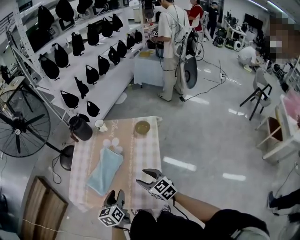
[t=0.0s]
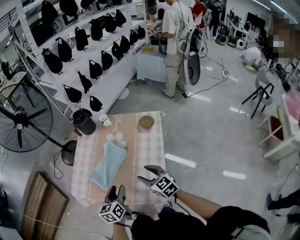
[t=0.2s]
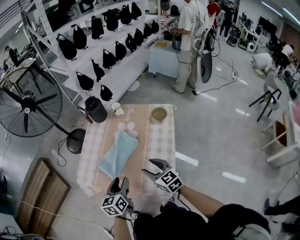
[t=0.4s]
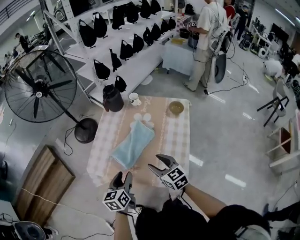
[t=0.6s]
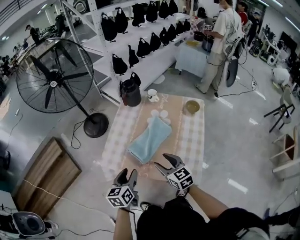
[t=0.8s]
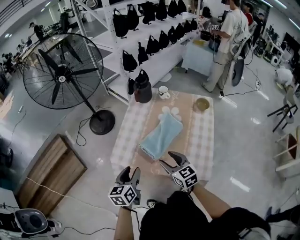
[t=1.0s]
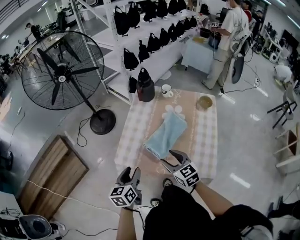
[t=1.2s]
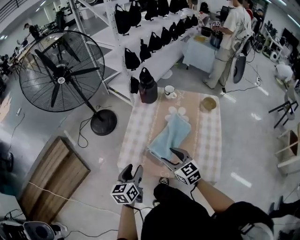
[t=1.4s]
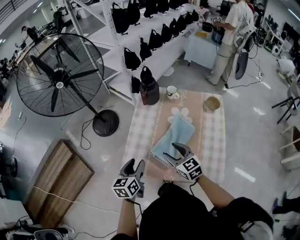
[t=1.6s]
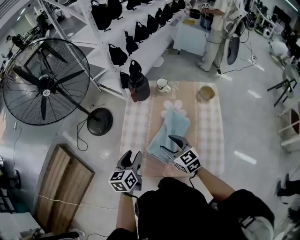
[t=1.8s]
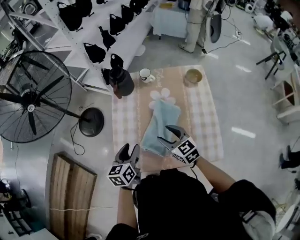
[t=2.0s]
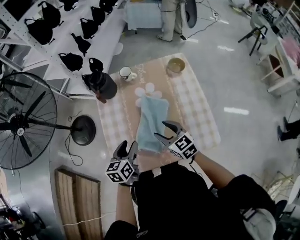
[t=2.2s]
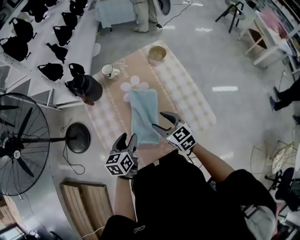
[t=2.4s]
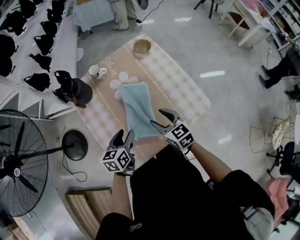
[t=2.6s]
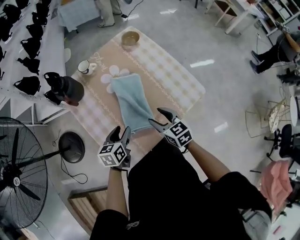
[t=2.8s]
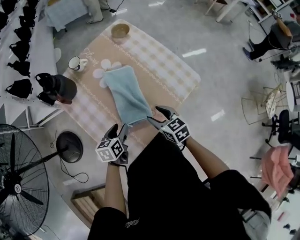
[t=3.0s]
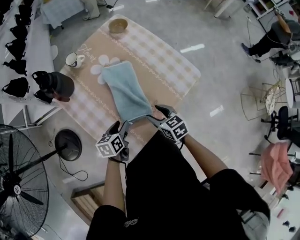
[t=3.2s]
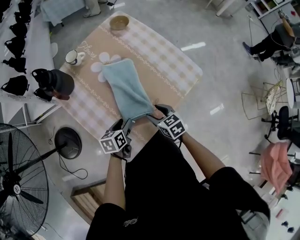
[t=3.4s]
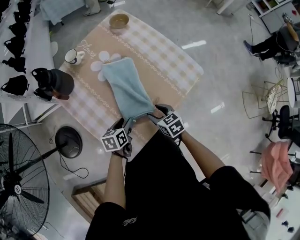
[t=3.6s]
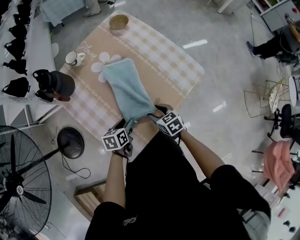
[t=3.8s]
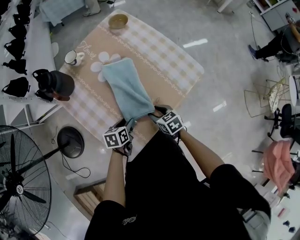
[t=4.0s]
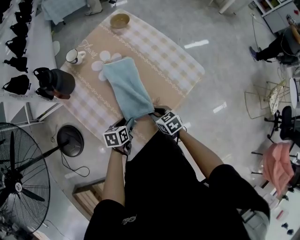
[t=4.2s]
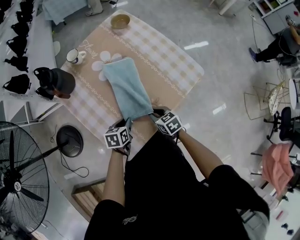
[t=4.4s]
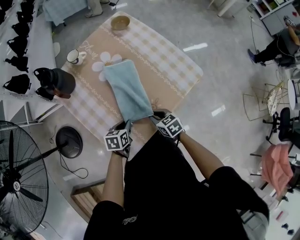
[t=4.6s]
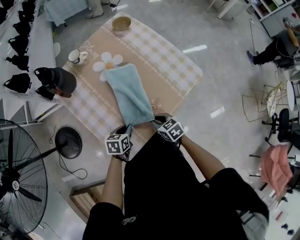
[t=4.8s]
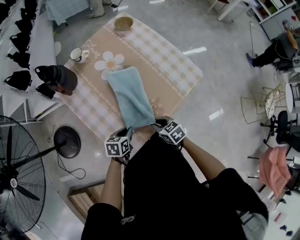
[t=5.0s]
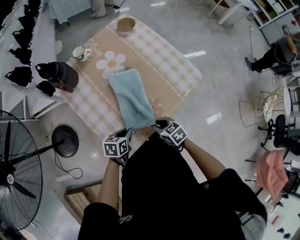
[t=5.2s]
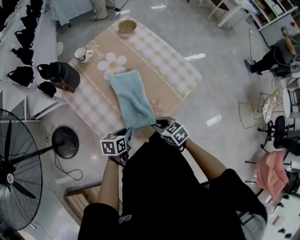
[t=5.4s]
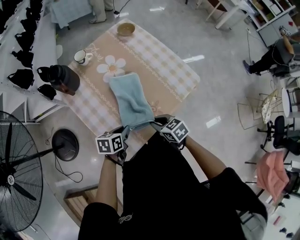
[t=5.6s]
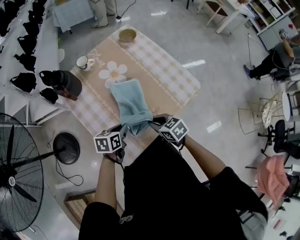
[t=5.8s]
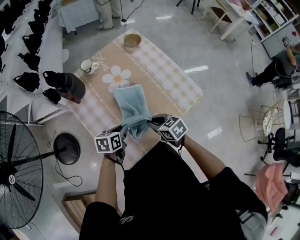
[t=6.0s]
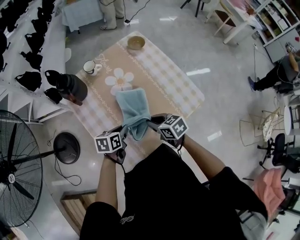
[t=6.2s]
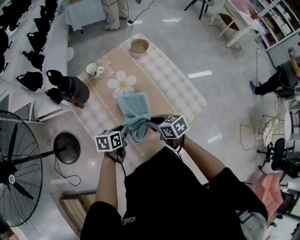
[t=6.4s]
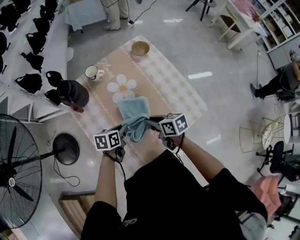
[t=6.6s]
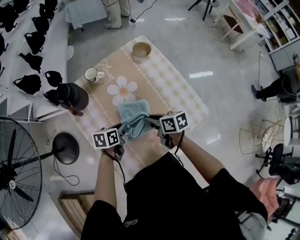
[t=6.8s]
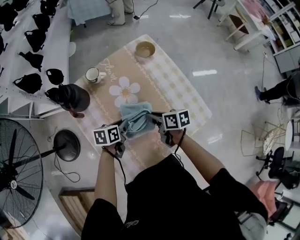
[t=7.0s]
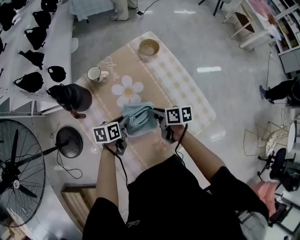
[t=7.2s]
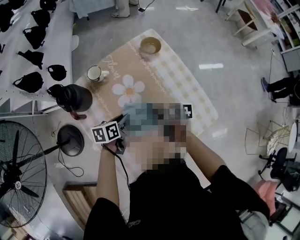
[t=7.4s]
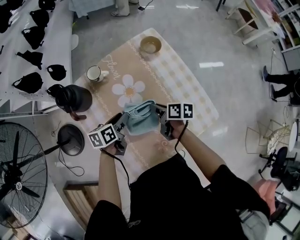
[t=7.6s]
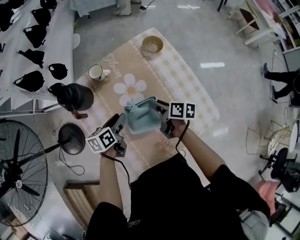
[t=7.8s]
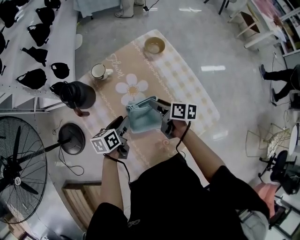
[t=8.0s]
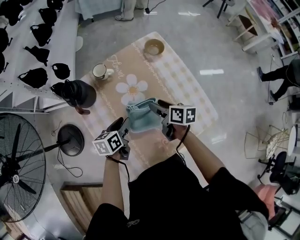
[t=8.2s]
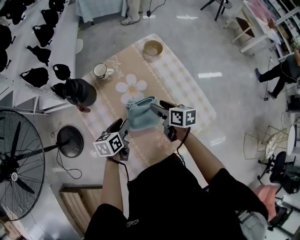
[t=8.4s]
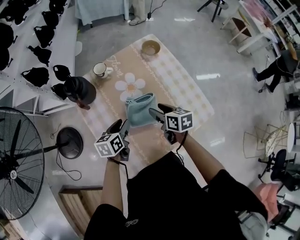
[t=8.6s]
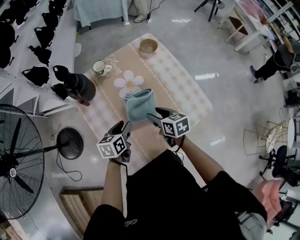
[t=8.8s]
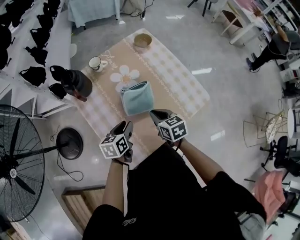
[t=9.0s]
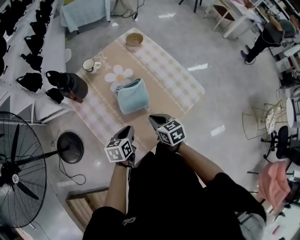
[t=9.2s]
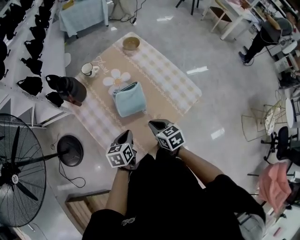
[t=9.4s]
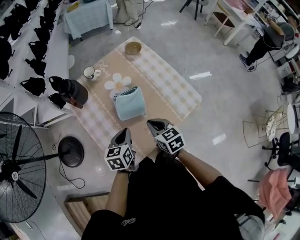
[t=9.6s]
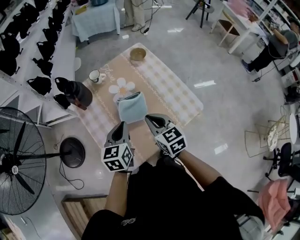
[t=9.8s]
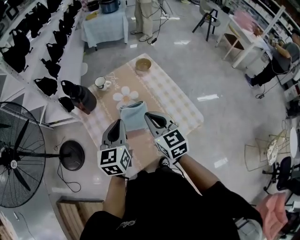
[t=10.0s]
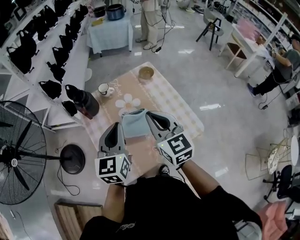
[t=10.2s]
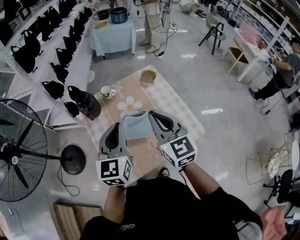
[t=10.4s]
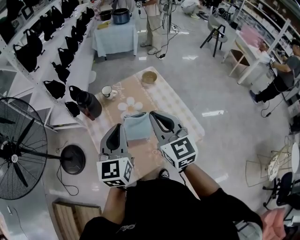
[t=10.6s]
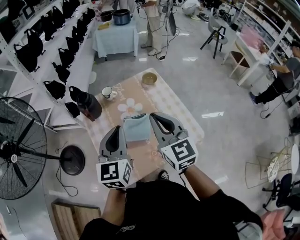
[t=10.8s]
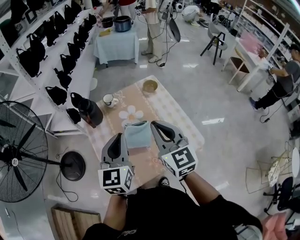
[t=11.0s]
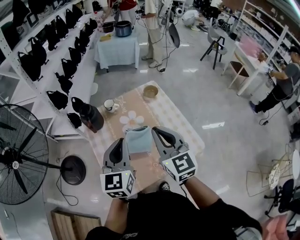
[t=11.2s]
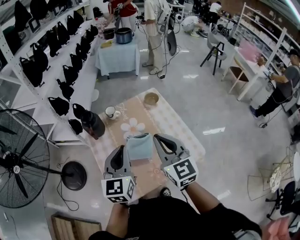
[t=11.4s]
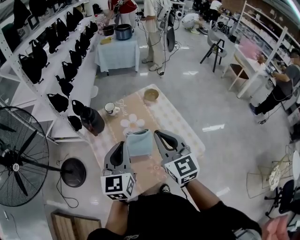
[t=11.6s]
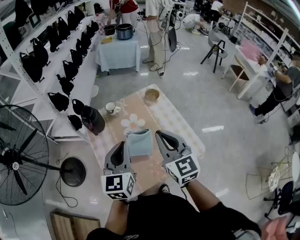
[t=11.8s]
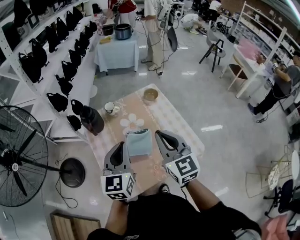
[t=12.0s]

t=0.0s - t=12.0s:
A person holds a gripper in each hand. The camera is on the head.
t=0.0s - t=1.6s: The grippers both shift to the left by about 30 cm.
t=1.6s - t=3.0s: Both grippers travel together downward, some 15 cm. The left gripper rotates roughly 60 degrees. The right gripper rotates roughly 60 degrees.
t=3.0s - t=4.4s: Both grippers move downward, roughly 10 cm. The left gripper closes; the right gripper closes its fingers.
t=4.4s - t=6.0s: Both grippers move upward, some 10 cm. The left gripper moves approximately 5 cm backward and comes back.
t=6.0s - t=7.6s: The two grippers go approximately 20 cm forward. The right gripper rolls clockwise, seen from behind, by some 40 degrees; the left gripper swivels approximately 20 degrees.
t=7.6s - t=9.0s: The grippers both shift backward by roughly 15 cm. The right gripper swivels approximately 40 degrees, and opens, then closes once more.
t=9.0s - t=10.4s: The two grippers go roughly 30 cm upward. The right gripper tilts its fingers some 30 degrees upward. The left gripper rotates about 50 degrees, and closes up.
t=10.4s - t=12.0s: The grippers stay close to where they were, moving slightly.

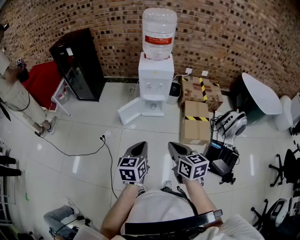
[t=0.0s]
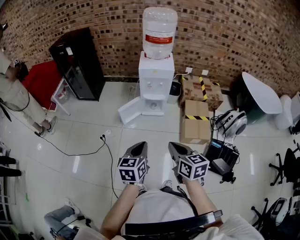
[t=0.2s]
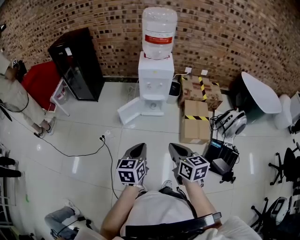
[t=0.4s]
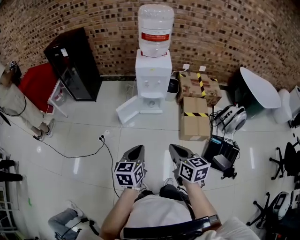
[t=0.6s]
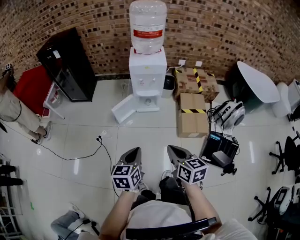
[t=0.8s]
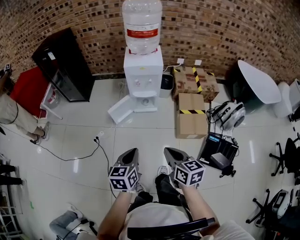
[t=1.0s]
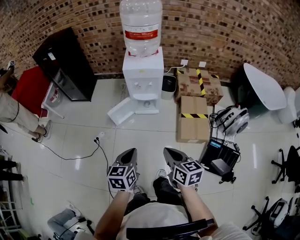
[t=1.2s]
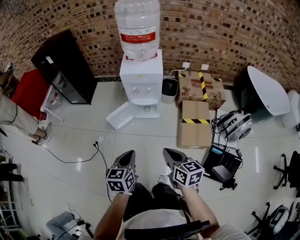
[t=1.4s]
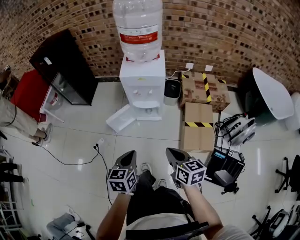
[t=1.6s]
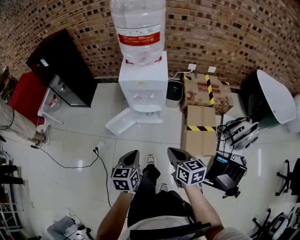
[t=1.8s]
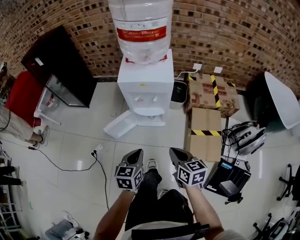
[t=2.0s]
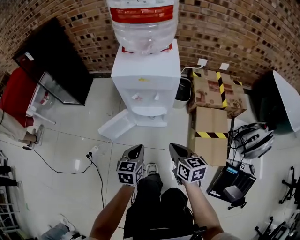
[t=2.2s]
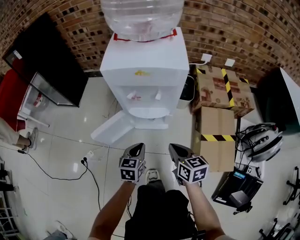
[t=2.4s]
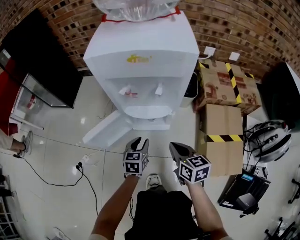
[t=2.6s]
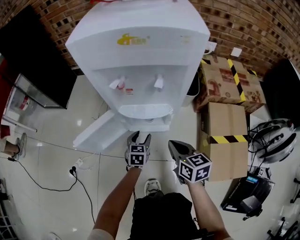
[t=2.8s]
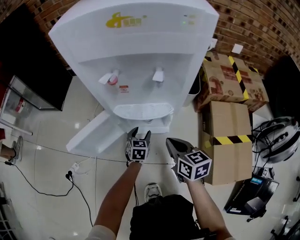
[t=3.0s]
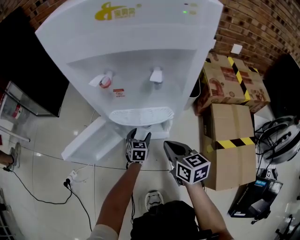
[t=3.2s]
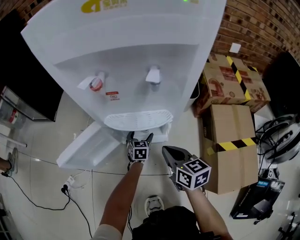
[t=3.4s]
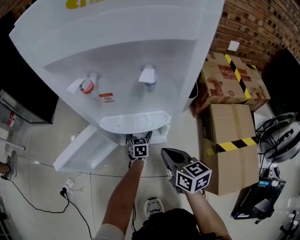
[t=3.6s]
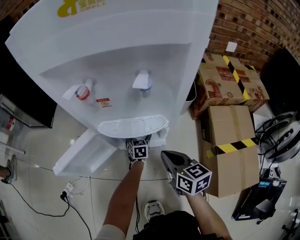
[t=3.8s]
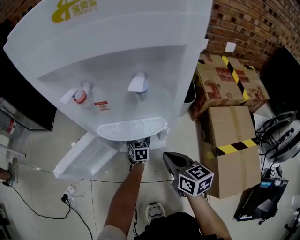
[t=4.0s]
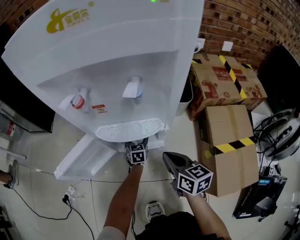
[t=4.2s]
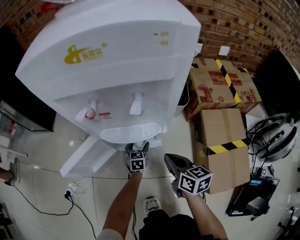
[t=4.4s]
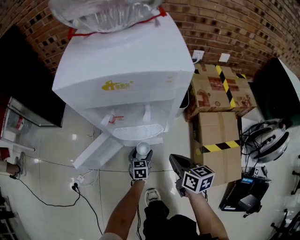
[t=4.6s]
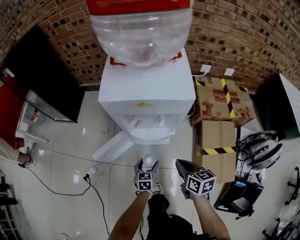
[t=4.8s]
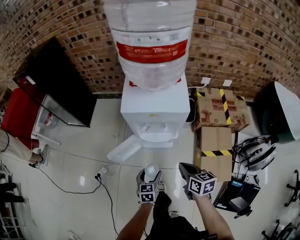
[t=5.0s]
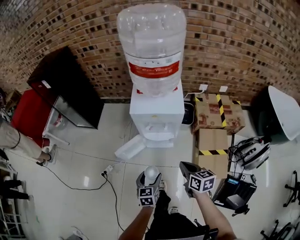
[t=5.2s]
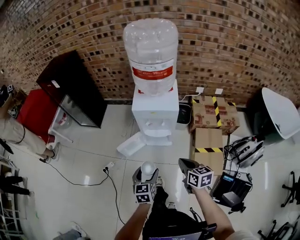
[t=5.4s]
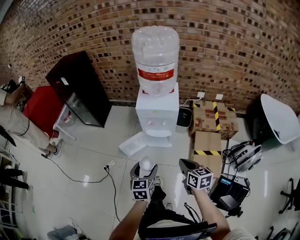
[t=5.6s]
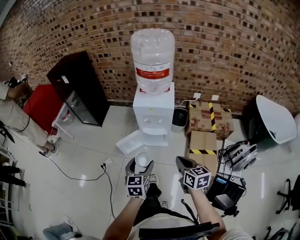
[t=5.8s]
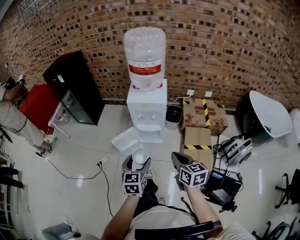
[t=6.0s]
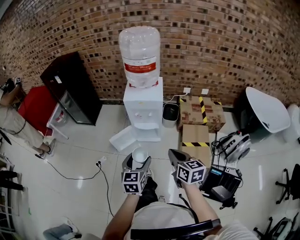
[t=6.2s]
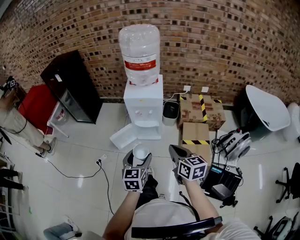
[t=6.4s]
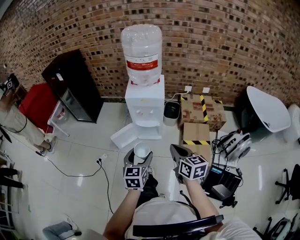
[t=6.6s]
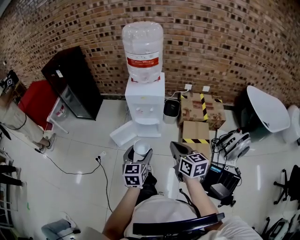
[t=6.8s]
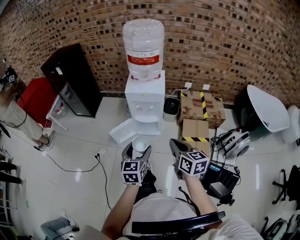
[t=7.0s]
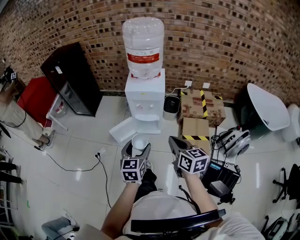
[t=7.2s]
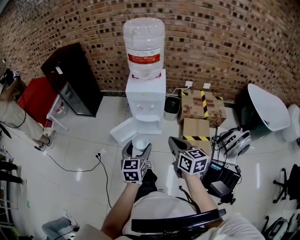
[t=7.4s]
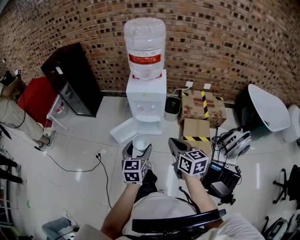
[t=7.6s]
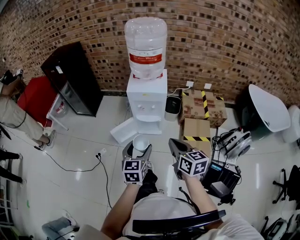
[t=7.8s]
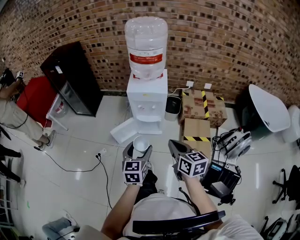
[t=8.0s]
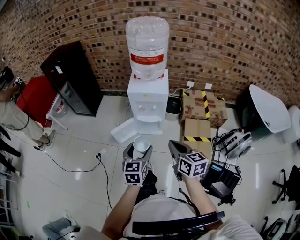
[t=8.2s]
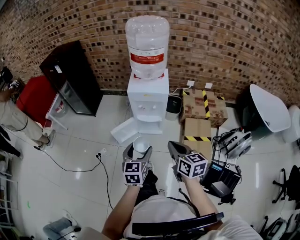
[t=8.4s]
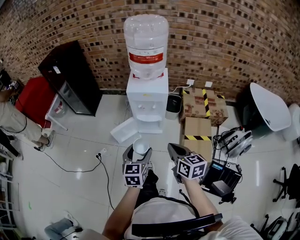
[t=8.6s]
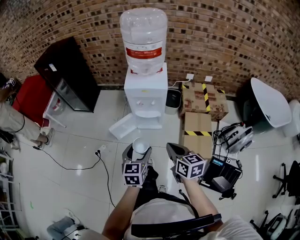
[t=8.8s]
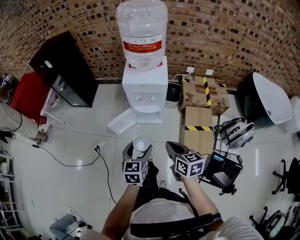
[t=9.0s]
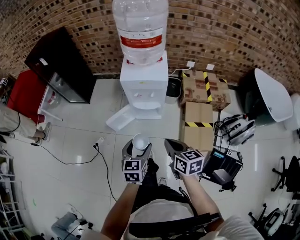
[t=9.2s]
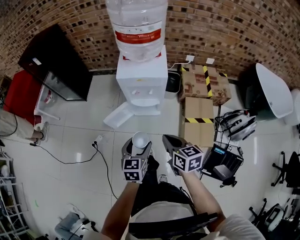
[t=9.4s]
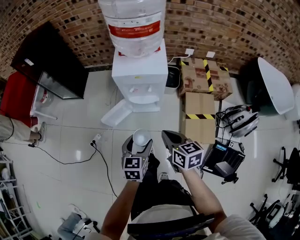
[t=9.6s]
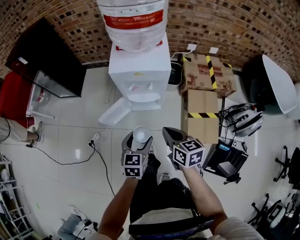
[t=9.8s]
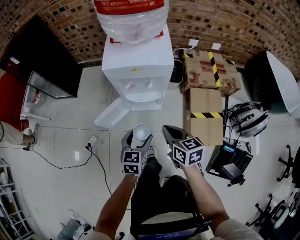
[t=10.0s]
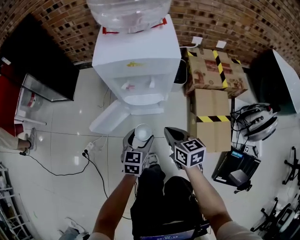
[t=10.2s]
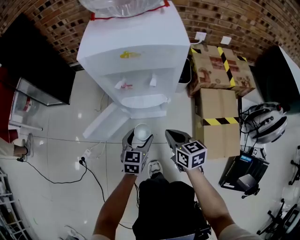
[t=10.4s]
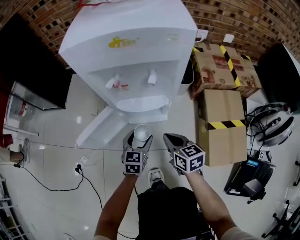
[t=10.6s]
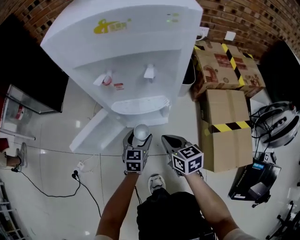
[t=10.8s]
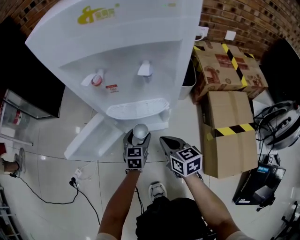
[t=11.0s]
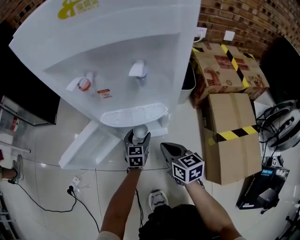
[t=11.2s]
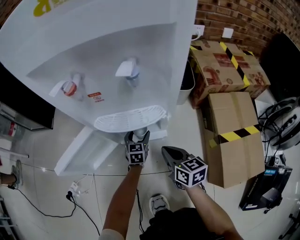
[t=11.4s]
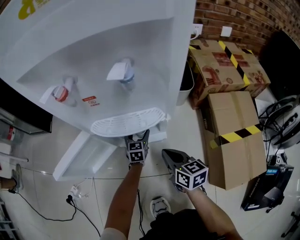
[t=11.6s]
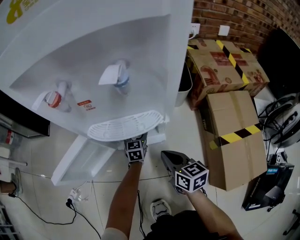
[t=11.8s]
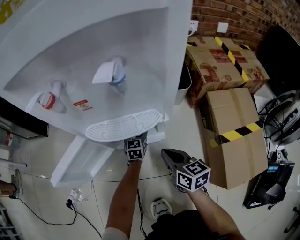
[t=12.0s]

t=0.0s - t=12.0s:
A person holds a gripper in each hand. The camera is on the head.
t=0.0s - t=1.6s: The right gripper heads forward, to the right and downward, covering some 25 cm, while the left gripper shifts approximately 20 cm forward and downward.
t=1.6s - t=3.0s: Both grippers travel together downward and forward, approximately 60 cm. The left gripper opens up.
t=3.0s - t=4.4s: The left gripper is displaced downward by some 5 cm.
t=4.4s - t=6.0s: The grippers both shift upward and backward by some 70 cm.
t=6.0s - t=7.6s: There are only small adjustments of the grippers.
t=7.6s - t=9.0s: The grippers both shift downward by roughly 5 cm.
t=9.0s - t=10.4s: The grippers both shift downward and forward by roughly 40 cm.
t=10.4s - t=12.0s: The right gripper goes about 20 cm downward, while the left gripper goes about 40 cm downward and forward.
